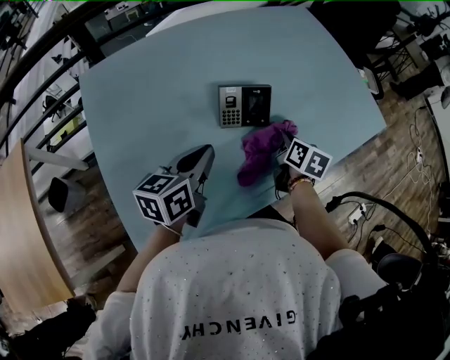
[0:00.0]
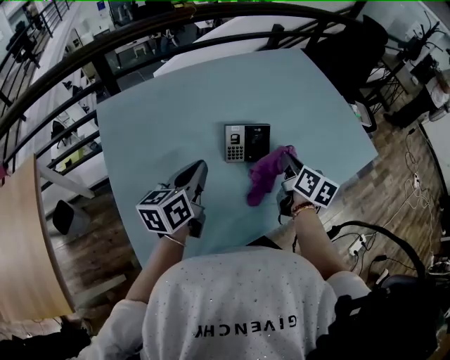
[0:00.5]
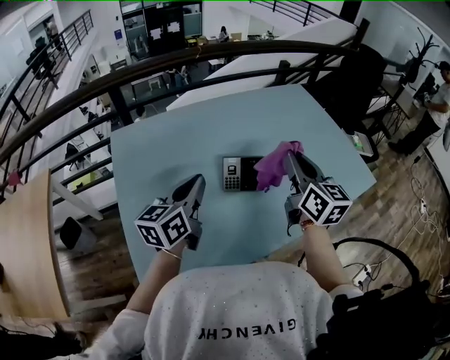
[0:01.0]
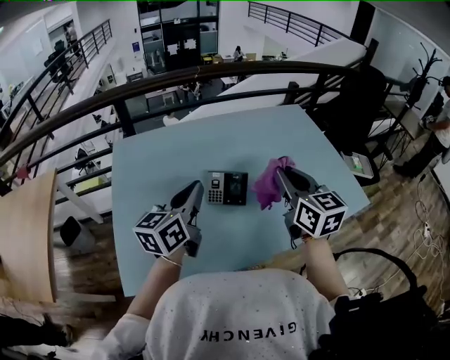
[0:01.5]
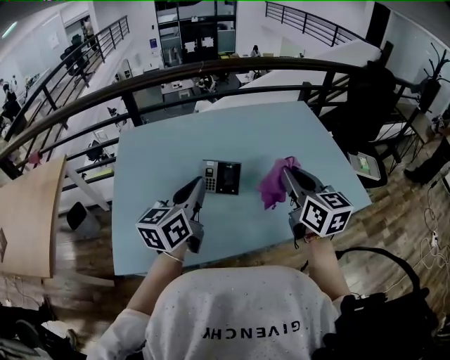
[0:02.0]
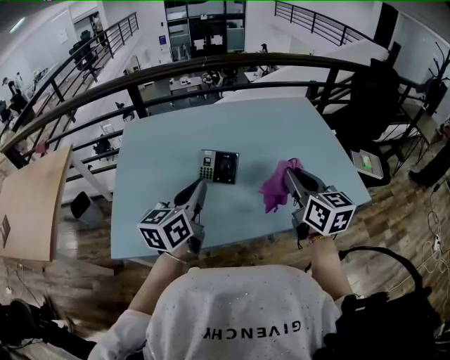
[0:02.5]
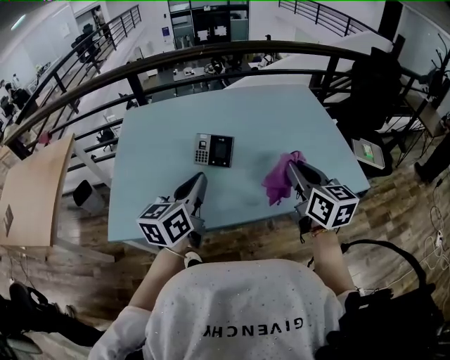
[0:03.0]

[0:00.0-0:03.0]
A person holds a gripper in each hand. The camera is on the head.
0:00.0 to 0:01.5: The left gripper goes roughly 15 cm upward, and rotates some 20 degrees. The right gripper is displaced upward by about 30 cm, and turns by some 50 degrees.
0:01.5 to 0:03.0: The left gripper travels backward and to the right by some 20 cm; the right gripper heads to the right and backward, covering about 20 cm.

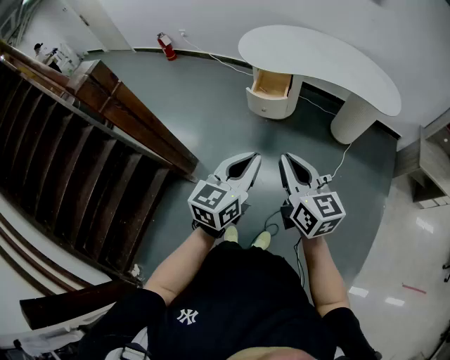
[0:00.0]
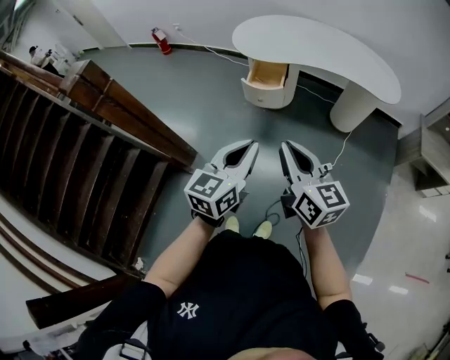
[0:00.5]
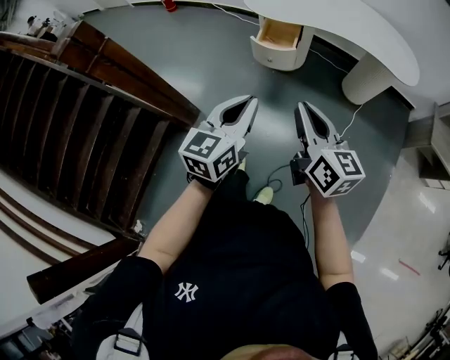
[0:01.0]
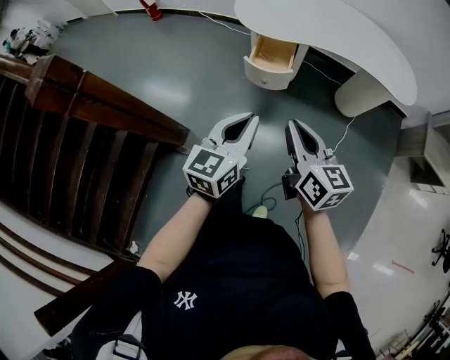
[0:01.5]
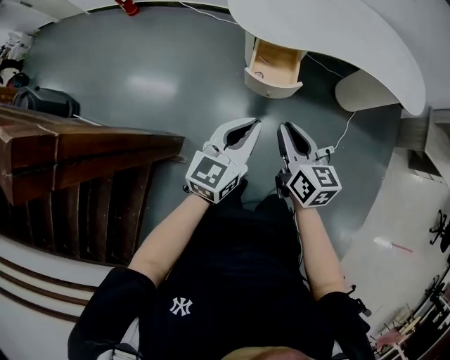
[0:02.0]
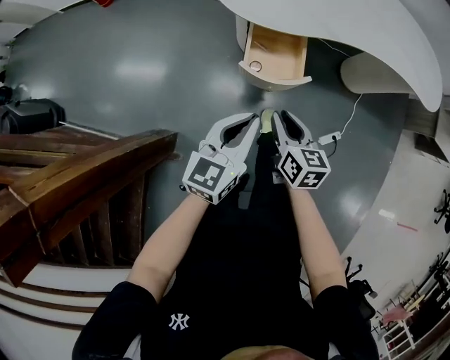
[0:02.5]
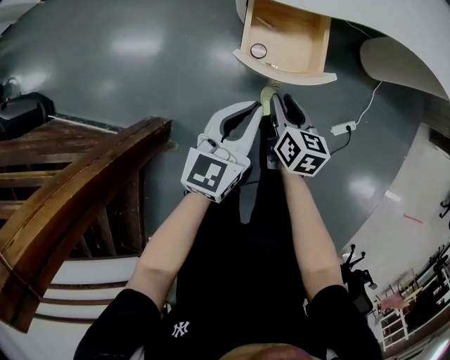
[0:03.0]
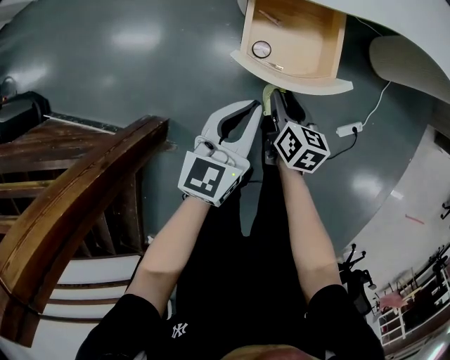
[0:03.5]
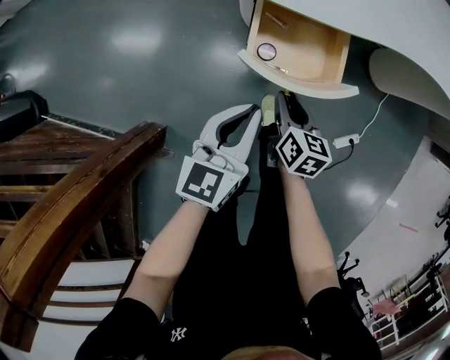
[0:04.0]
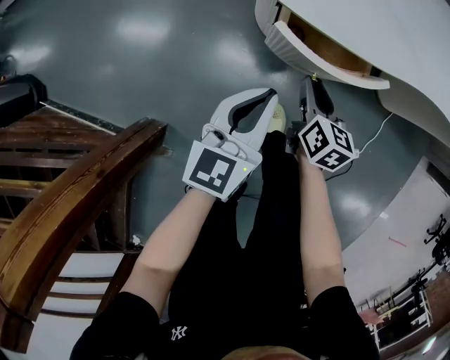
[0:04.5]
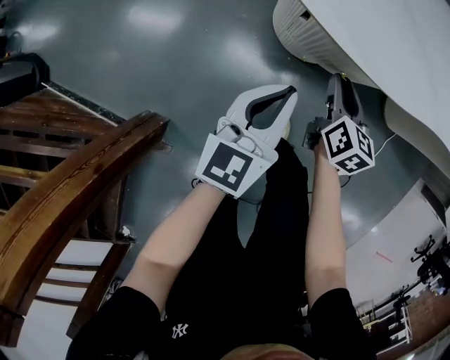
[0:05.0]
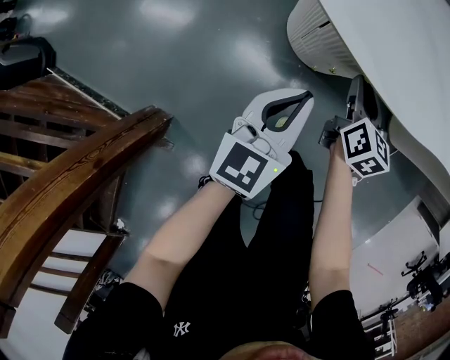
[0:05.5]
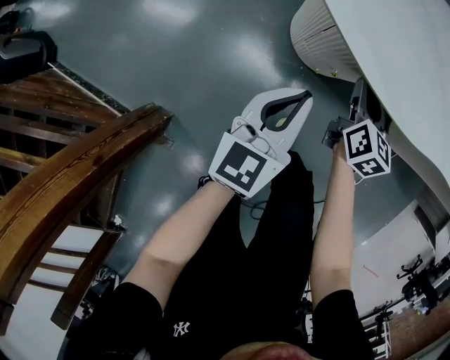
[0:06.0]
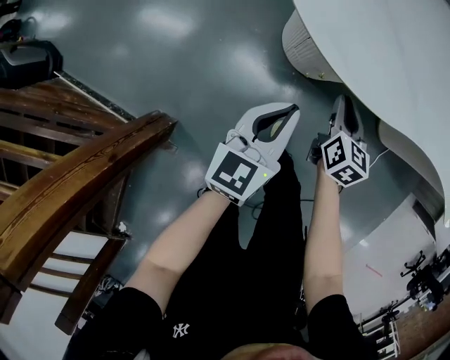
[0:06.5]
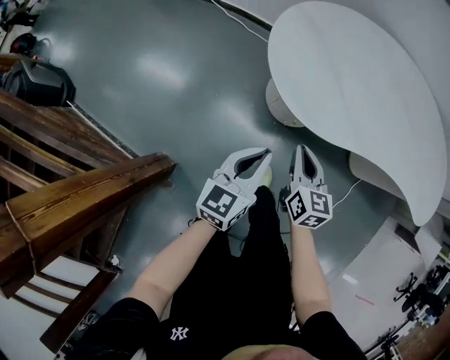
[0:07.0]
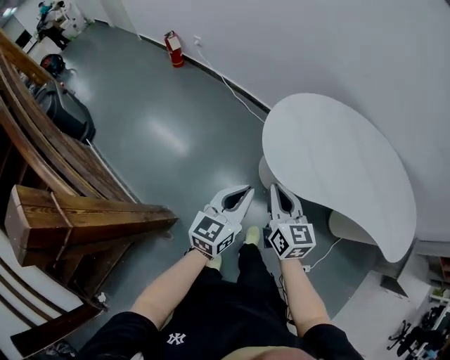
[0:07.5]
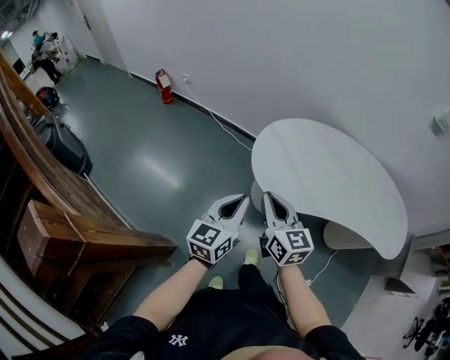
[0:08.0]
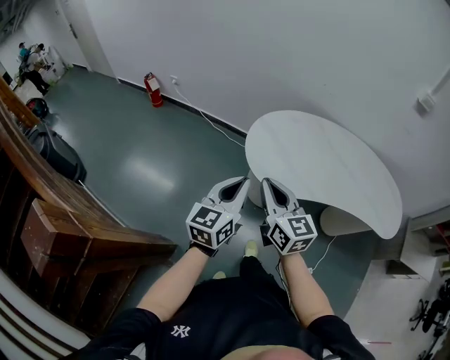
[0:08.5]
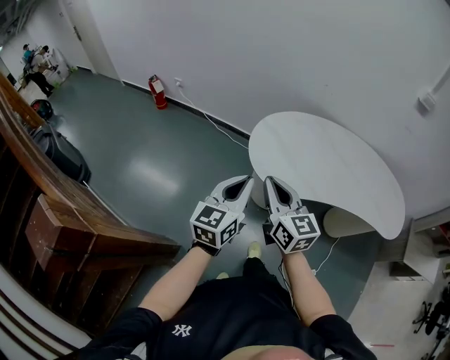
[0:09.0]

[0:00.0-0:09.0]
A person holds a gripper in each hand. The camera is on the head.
0:00.0 to 0:02.0: The left gripper shifts roughly 30 cm forward. Meanwhile the right gripper is displaced forward and downward by approximately 35 cm.
0:02.0 to 0:04.5: Both grippers travel together downward and forward, roughly 40 cm.
0:04.5 to 0:07.0: Both grippers travel together upward, about 20 cm. The right gripper closes.
0:07.0 to 0:09.0: The two grippers go some 30 cm upward. The right gripper turns by about 30 degrees.

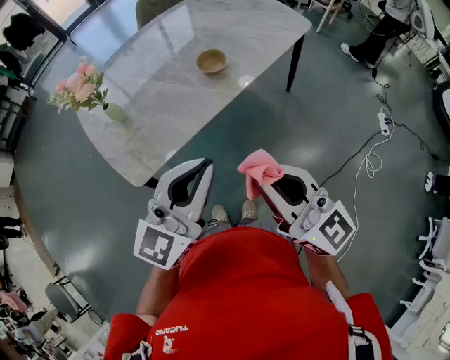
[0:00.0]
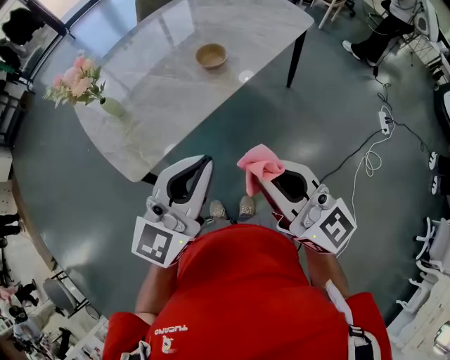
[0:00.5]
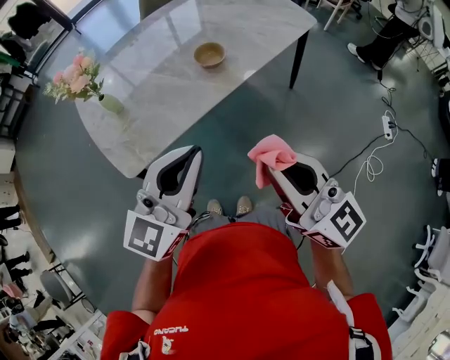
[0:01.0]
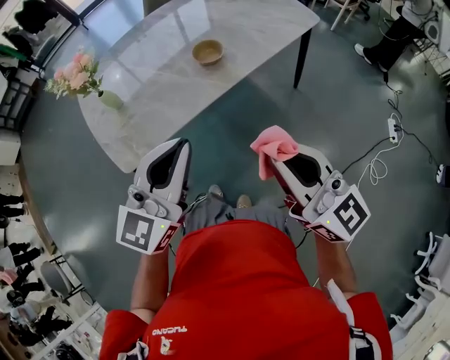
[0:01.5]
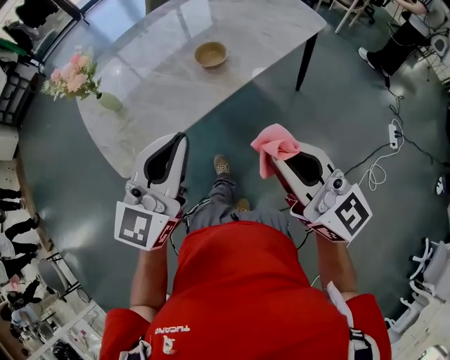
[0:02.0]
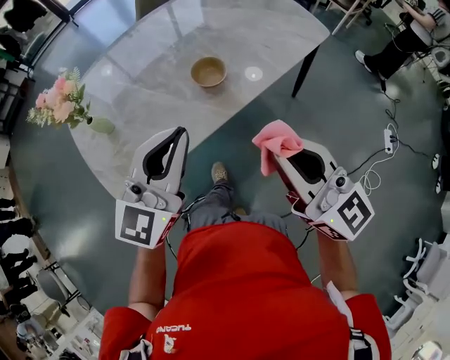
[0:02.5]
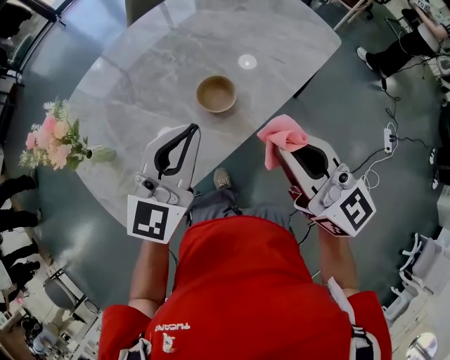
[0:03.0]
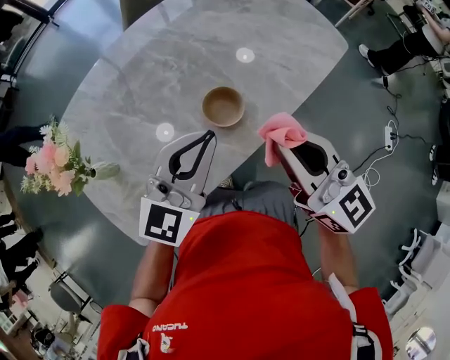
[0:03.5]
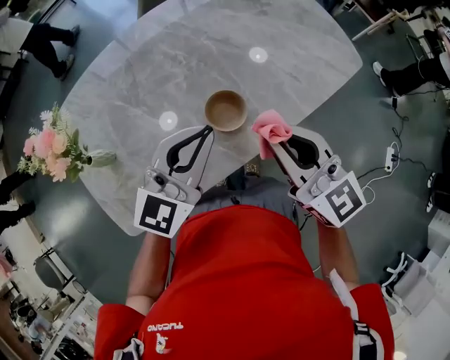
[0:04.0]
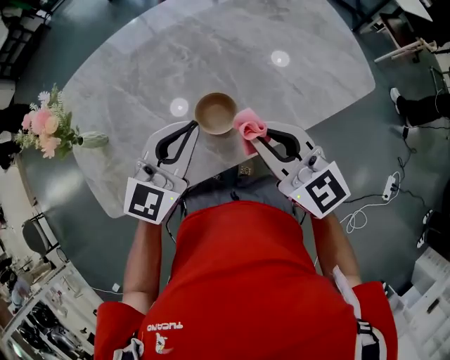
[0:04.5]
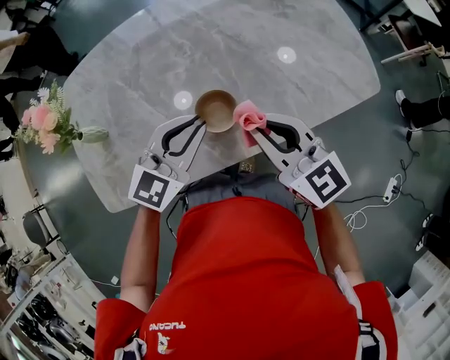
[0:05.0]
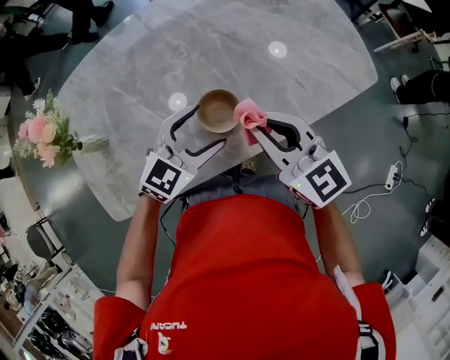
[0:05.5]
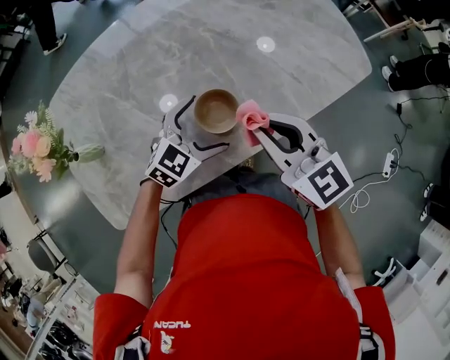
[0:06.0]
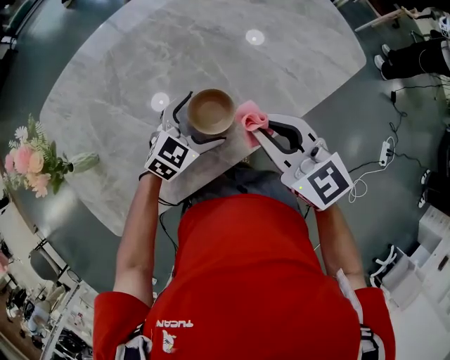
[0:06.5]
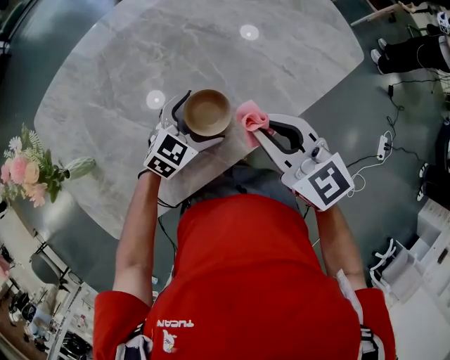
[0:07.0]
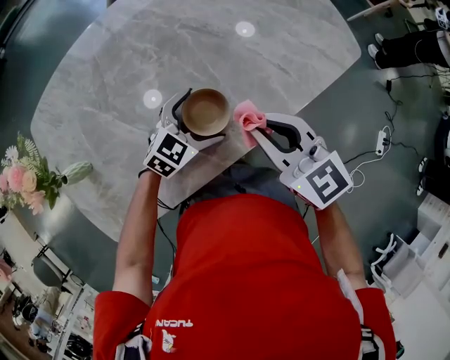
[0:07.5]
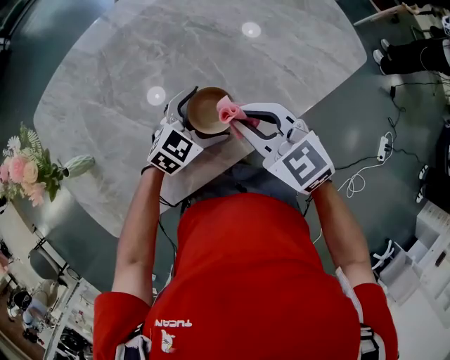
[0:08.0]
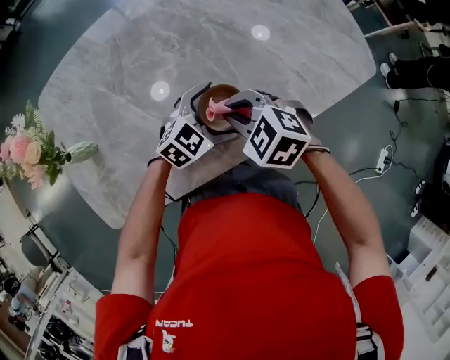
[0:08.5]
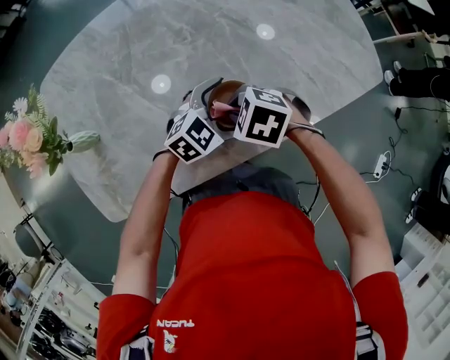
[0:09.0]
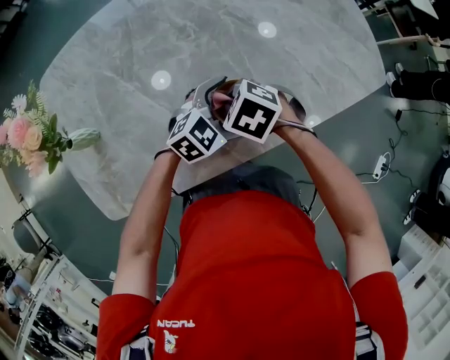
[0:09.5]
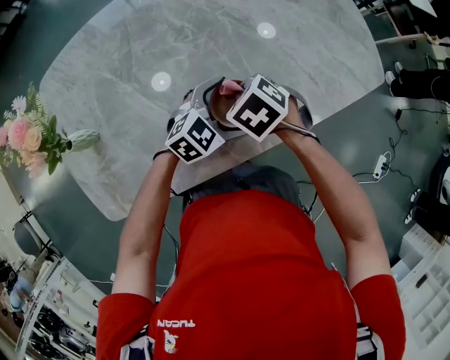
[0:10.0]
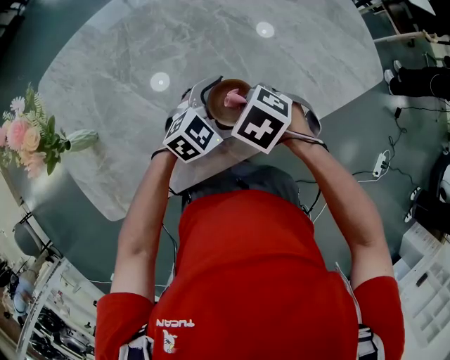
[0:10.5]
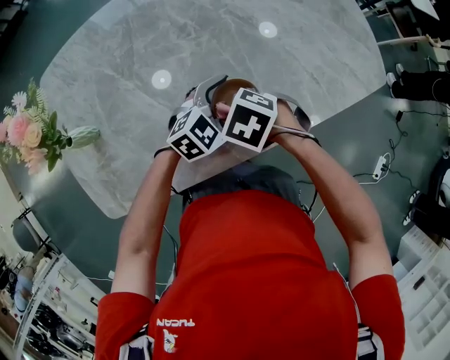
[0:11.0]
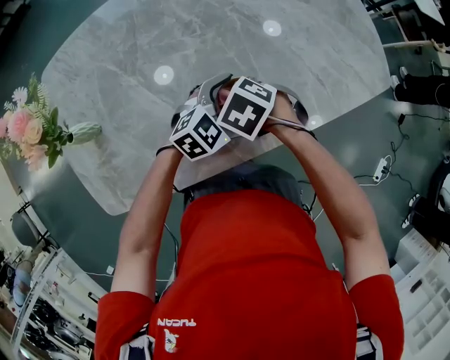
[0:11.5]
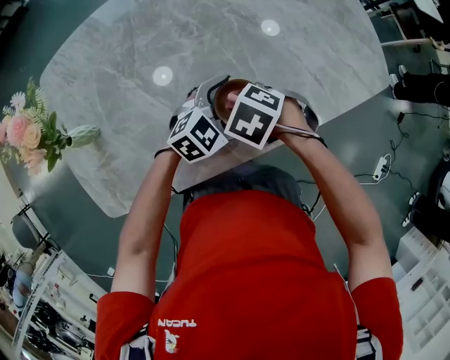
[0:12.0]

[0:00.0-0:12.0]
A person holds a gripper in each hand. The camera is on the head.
0:00.0 to 0:02.0: The right gripper moves to the right and forward, roughly 10 cm. The left gripper goes some 5 cm forward.
0:02.0 to 0:04.0: The grippers both shift forward by approximately 30 cm.
0:04.0 to 0:06.0: The right gripper shifts roughly 5 cm downward. The left gripper goes about 20 cm downward, swivels about 30 degrees, and opens.
0:06.0 to 0:08.0: The left gripper ends up approximately 5 cm from where it was. Meanwhile the right gripper goes about 5 cm downward.
0:08.0 to 0:10.0: The right gripper is displaced downward by approximately 10 cm, and points its fingers some 40 degrees further downward.

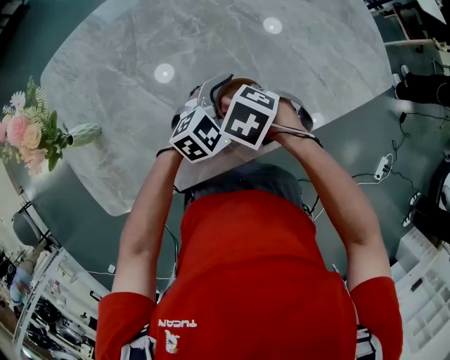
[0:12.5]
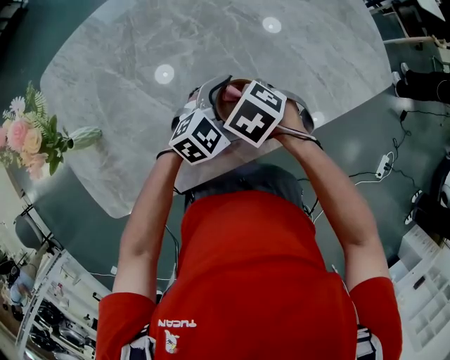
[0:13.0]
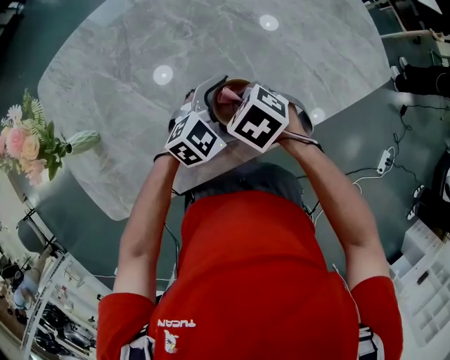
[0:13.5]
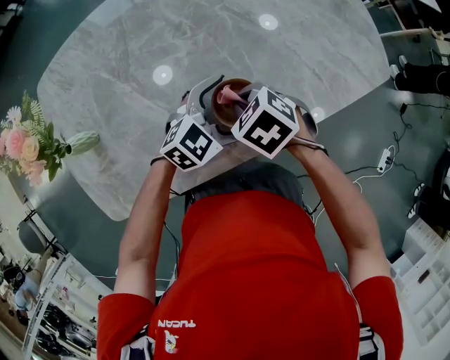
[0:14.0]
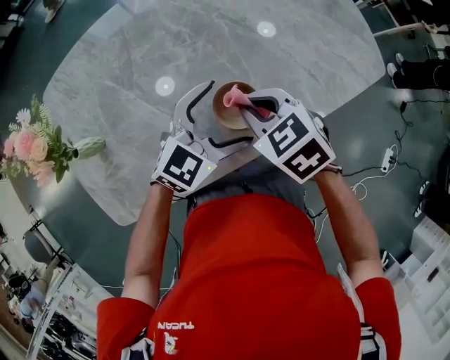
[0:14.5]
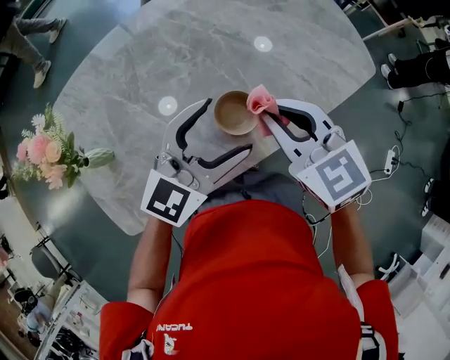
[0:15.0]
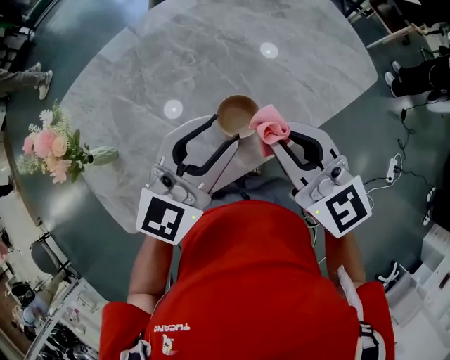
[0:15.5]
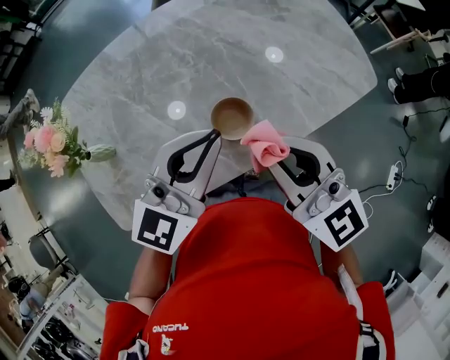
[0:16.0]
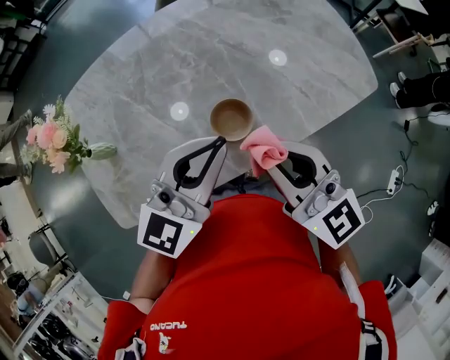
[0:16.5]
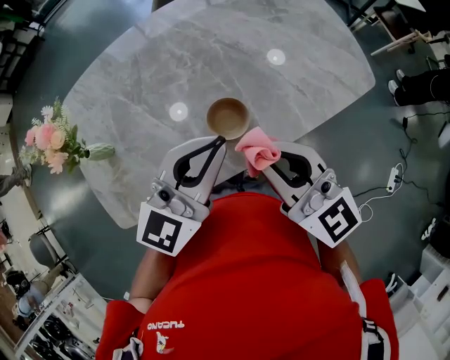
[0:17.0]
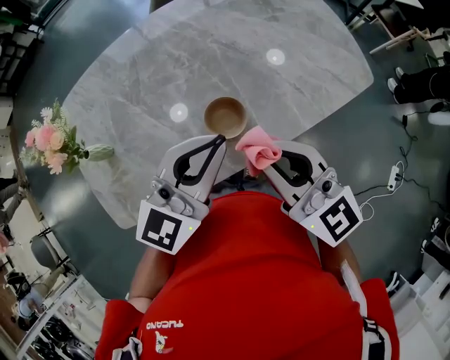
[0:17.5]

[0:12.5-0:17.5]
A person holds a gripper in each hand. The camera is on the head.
0:12.5 to 0:15.0: The two grippers go some 20 cm upward. The right gripper angles its fingers upward, by approximately 50 degrees. Meanwhile the left gripper swivels roughly 30 degrees.
0:15.0 to 0:17.5: The right gripper travels backward and upward by roughly 10 cm, and turns by about 30 degrees. Meanwhile the left gripper is displaced upward by some 5 cm, and closes up.
